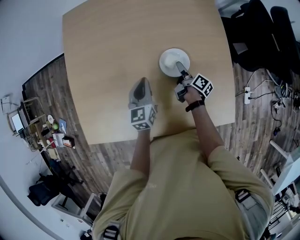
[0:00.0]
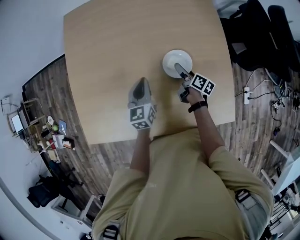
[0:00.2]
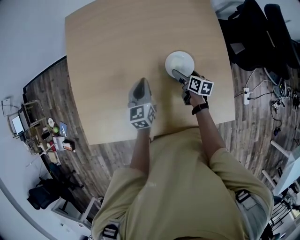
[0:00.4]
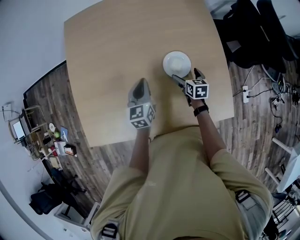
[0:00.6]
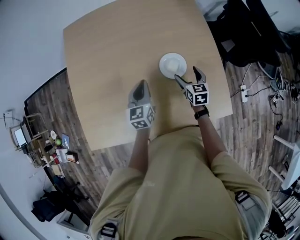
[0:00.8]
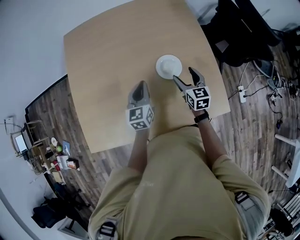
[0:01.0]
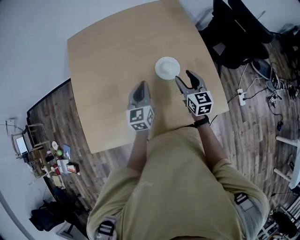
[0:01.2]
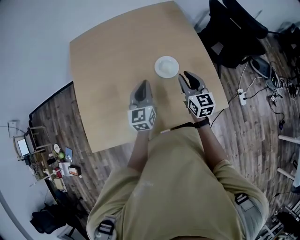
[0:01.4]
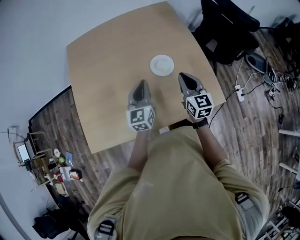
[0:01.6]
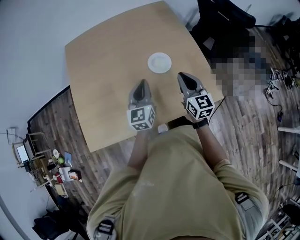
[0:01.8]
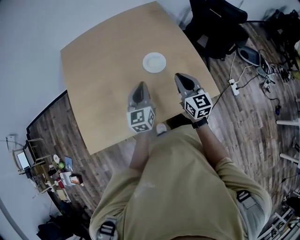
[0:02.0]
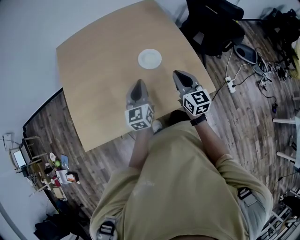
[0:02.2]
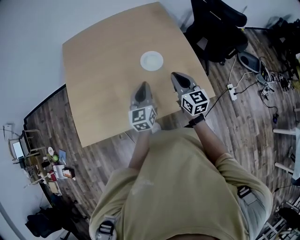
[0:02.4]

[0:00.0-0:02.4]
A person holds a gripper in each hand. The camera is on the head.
0.0 to 1.2 s: The left gripper shifts about 10 cm upward and backward. The right gripper is displaced upward and backward by some 25 cm, twists some 70 degrees counterclockwise, seen from behind, and opens and closes again.
1.2 to 2.4 s: The left gripper is displaced backward and to the right by approximately 15 cm, while the right gripper is displaced backward and upward by some 15 cm, and closes up.

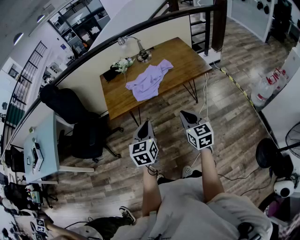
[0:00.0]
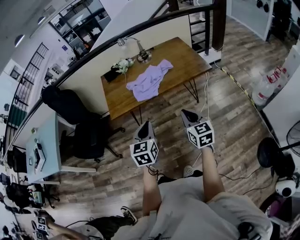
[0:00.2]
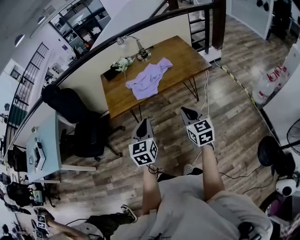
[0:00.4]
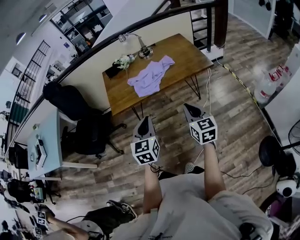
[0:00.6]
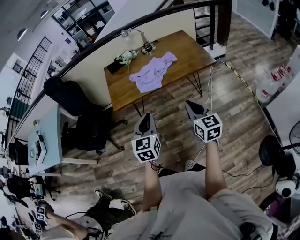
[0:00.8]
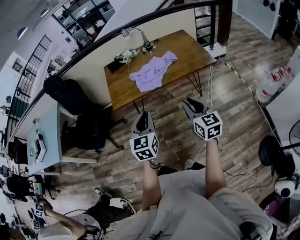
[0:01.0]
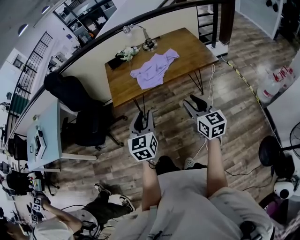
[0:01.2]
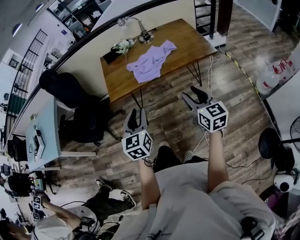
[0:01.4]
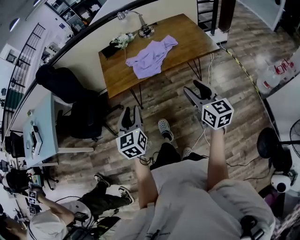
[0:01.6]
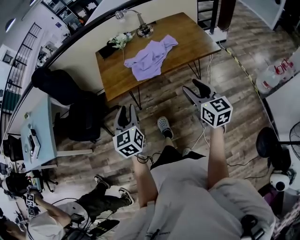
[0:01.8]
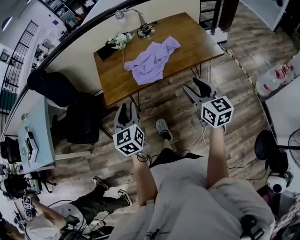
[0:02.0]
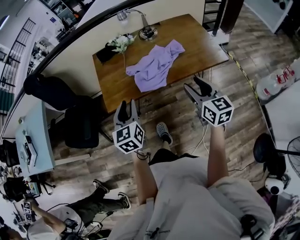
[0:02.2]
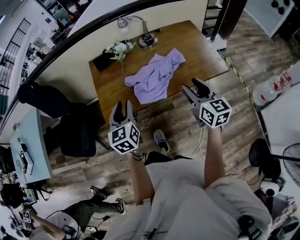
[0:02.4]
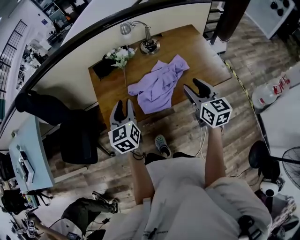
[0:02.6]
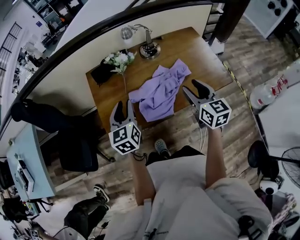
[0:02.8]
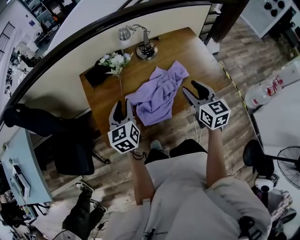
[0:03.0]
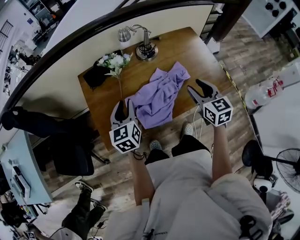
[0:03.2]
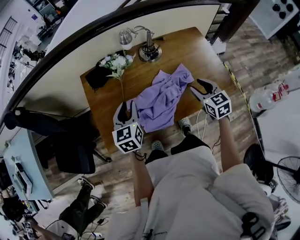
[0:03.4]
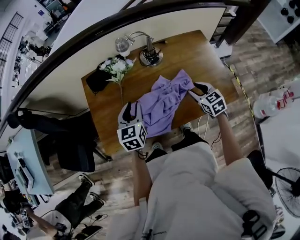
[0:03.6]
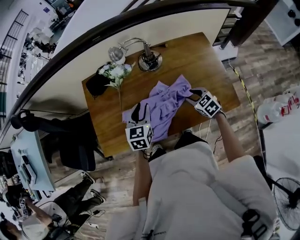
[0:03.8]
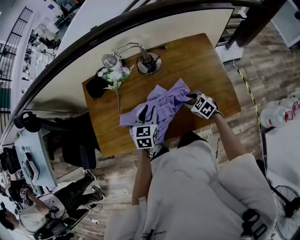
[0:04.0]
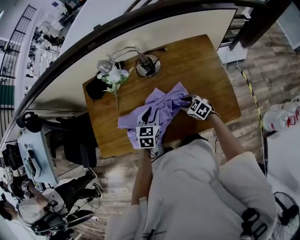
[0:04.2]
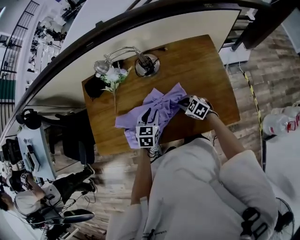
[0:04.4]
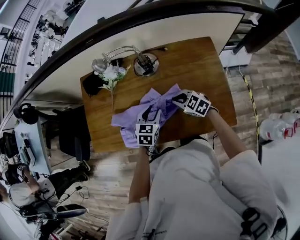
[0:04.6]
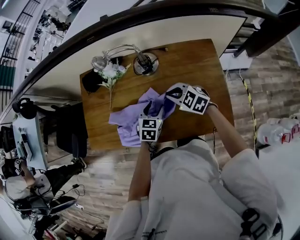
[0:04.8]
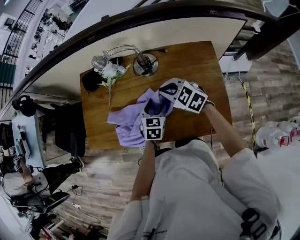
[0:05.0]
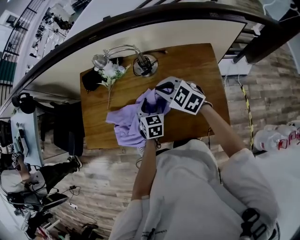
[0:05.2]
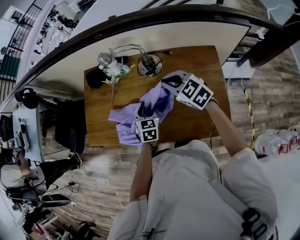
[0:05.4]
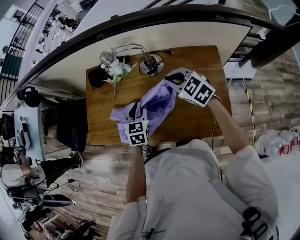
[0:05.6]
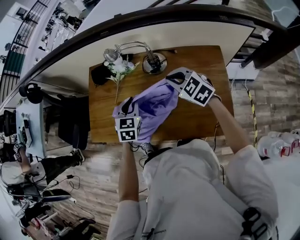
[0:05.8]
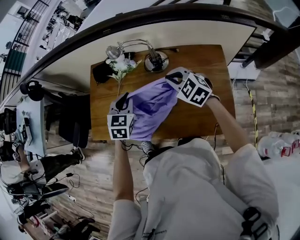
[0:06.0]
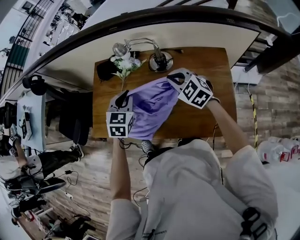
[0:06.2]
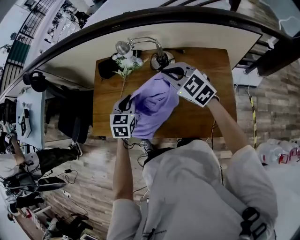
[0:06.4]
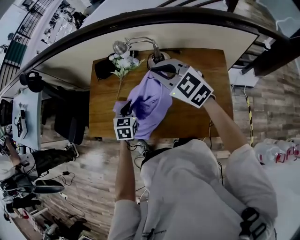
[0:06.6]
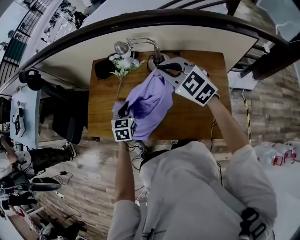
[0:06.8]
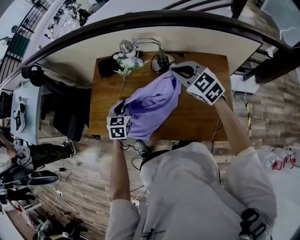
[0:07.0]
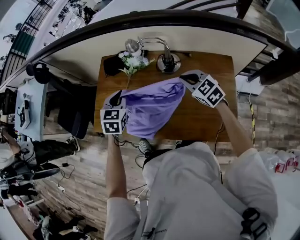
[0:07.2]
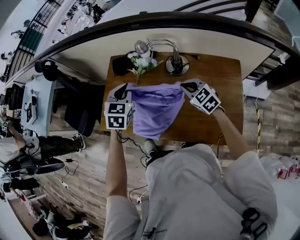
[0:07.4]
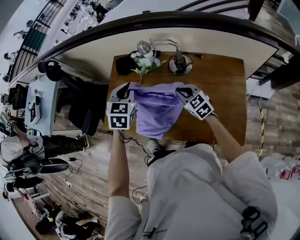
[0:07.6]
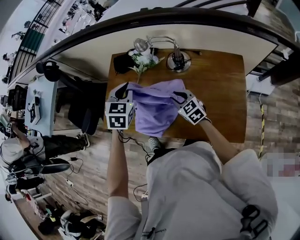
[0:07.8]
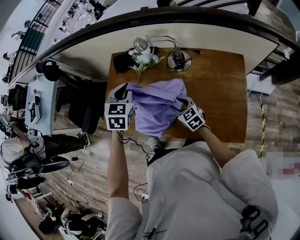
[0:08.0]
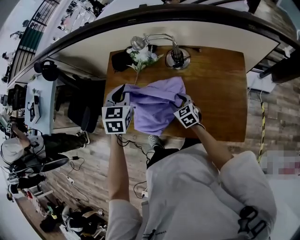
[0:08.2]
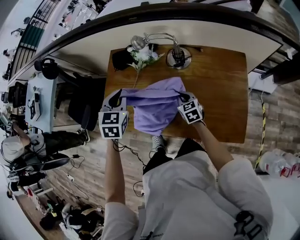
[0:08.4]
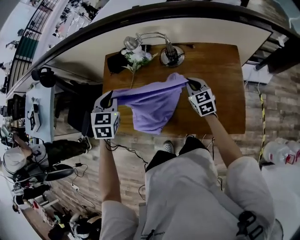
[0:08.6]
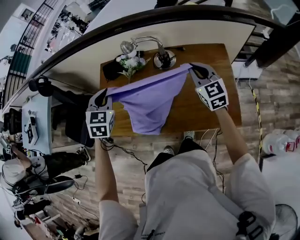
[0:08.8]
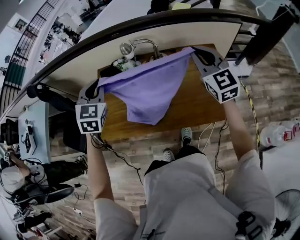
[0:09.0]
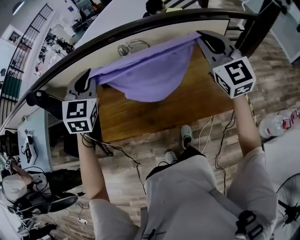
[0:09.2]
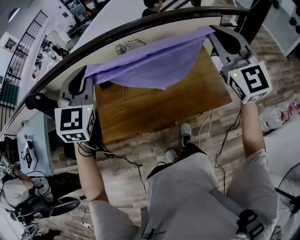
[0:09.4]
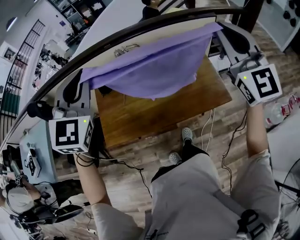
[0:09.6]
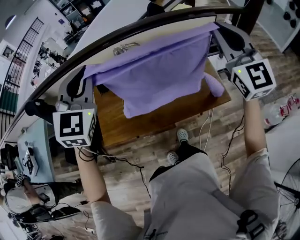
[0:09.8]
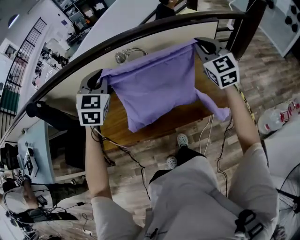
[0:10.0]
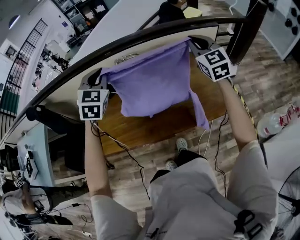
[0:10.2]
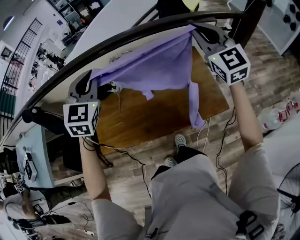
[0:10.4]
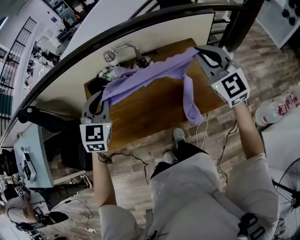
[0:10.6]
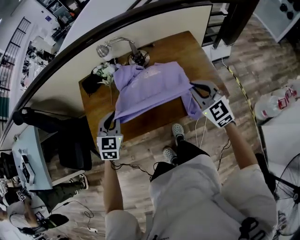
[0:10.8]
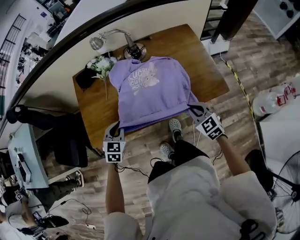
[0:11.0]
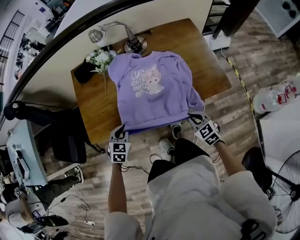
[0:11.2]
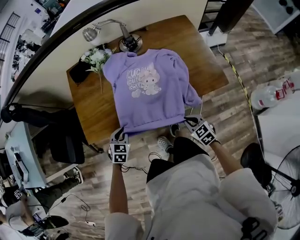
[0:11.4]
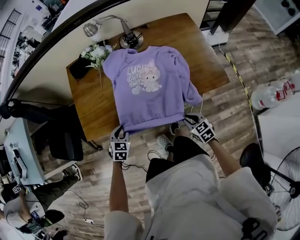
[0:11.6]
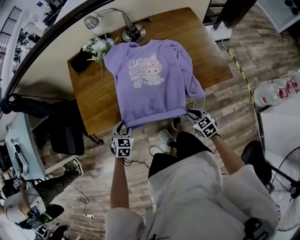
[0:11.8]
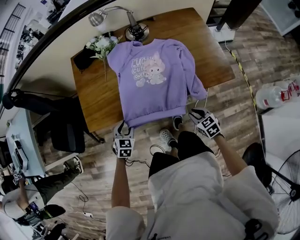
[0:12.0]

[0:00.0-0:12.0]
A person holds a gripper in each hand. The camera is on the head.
0.0 to 1.6 s: The left gripper shifts some 5 cm to the left, and opens up. The right gripper opens.
1.6 to 3.0 s: The pair of grippers is taken forward, approximately 40 cm.
3.0 to 4.4 s: The right gripper goes roughly 30 cm downward, changes its angle by about 60 degrees, and closes up. The left gripper changes place by roughly 30 cm, and swivels some 30 degrees.
4.4 to 6.0 s: The right gripper moves upward and forward, some 25 cm, and swivels about 30 degrees. Meanwhile the left gripper heads upward, to the left and forward, covering approximately 15 cm, and opens and closes again.
6.0 to 7.6 s: The left gripper is displaced upward and to the left by roughly 10 cm. The right gripper heads to the left and downward, covering approximately 10 cm.
7.6 to 9.0 s: The right gripper shifts approximately 30 cm upward, turns by some 40 degrees, and opens, then closes again. The left gripper travels upward by some 10 cm.
9.0 to 10.4 s: The left gripper moves up and down over about 20 cm, changing direction 2 times. Meanwhile the right gripper moves up and down over about 20 cm, changing direction 2 times.
10.4 to 12.0 s: The two grippers go some 60 cm downward and backward. The left gripper tips its fingers downward by approximately 40 degrees, and opens. Meanwhile the right gripper tips its fingers downward by about 50 degrees.

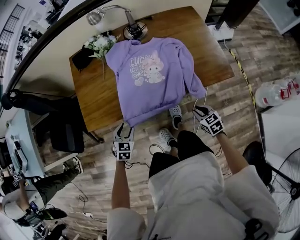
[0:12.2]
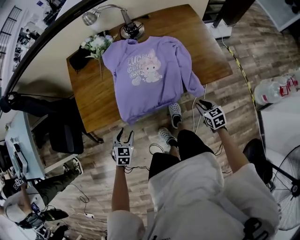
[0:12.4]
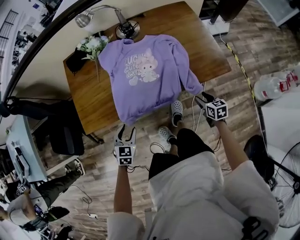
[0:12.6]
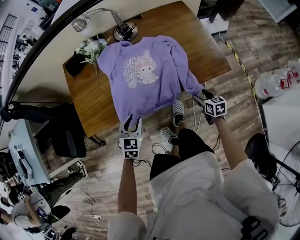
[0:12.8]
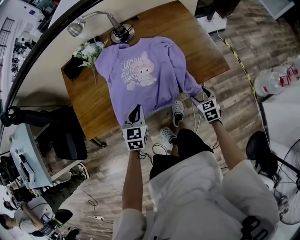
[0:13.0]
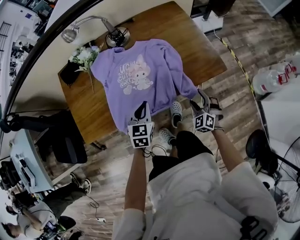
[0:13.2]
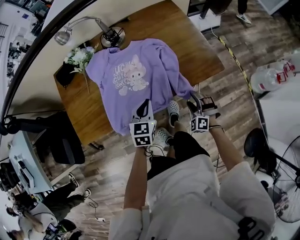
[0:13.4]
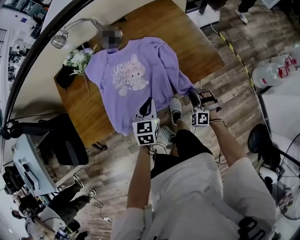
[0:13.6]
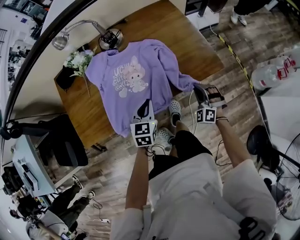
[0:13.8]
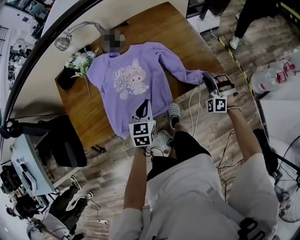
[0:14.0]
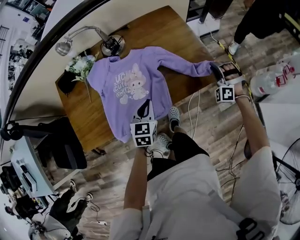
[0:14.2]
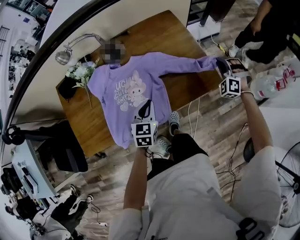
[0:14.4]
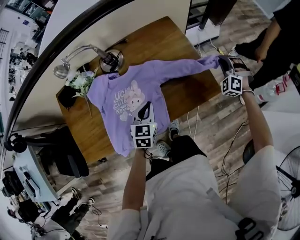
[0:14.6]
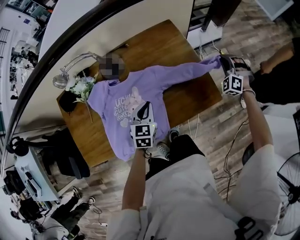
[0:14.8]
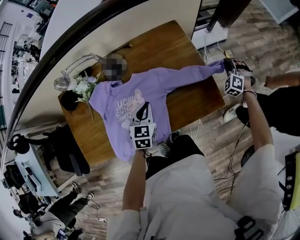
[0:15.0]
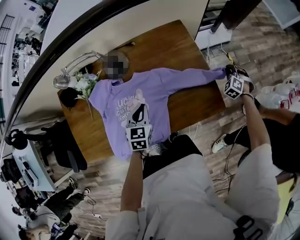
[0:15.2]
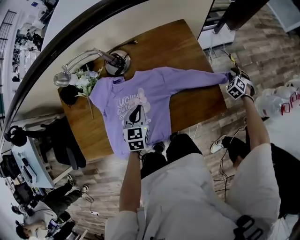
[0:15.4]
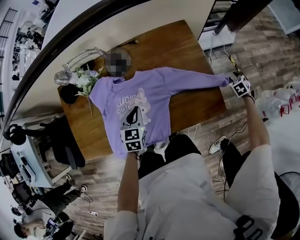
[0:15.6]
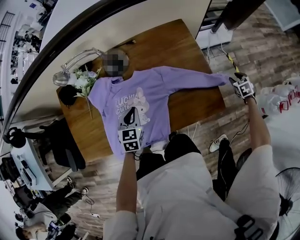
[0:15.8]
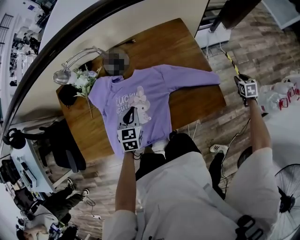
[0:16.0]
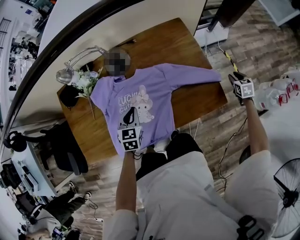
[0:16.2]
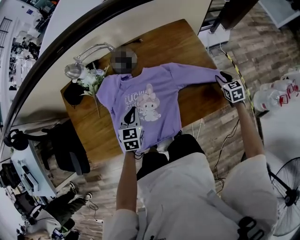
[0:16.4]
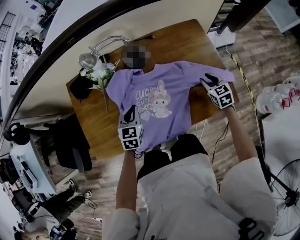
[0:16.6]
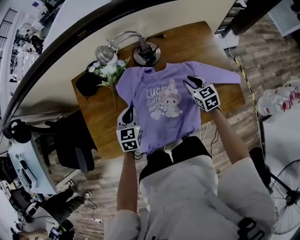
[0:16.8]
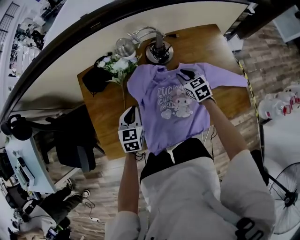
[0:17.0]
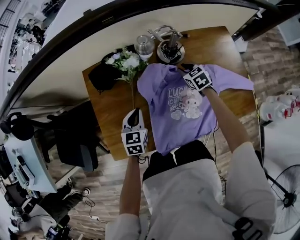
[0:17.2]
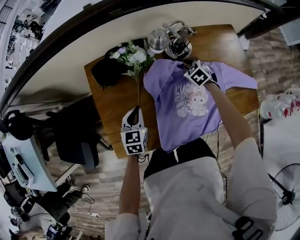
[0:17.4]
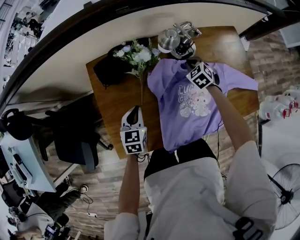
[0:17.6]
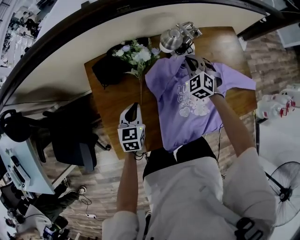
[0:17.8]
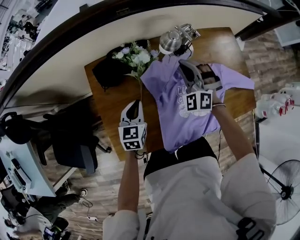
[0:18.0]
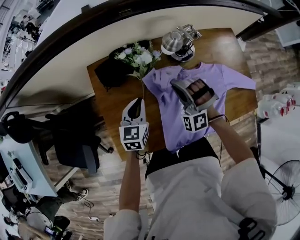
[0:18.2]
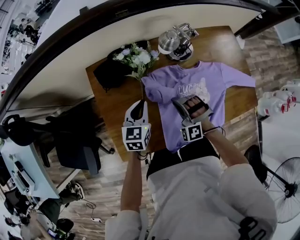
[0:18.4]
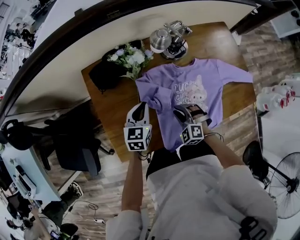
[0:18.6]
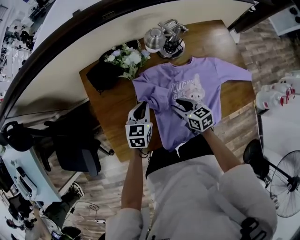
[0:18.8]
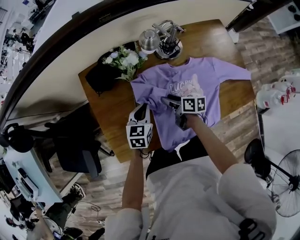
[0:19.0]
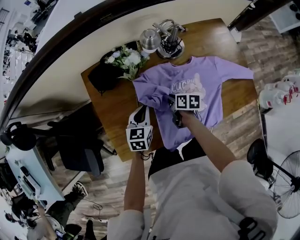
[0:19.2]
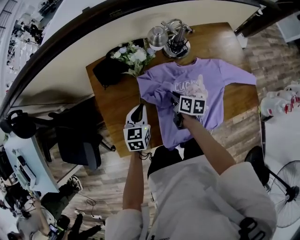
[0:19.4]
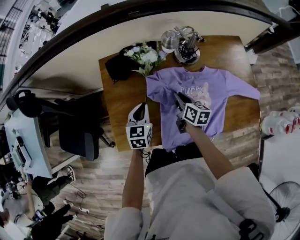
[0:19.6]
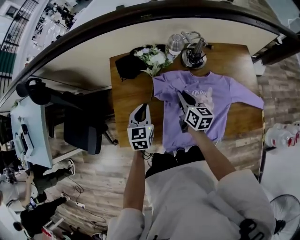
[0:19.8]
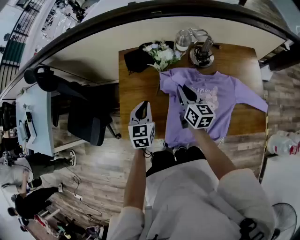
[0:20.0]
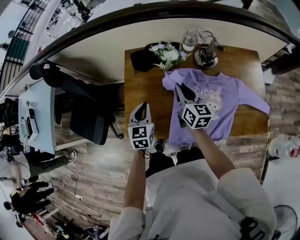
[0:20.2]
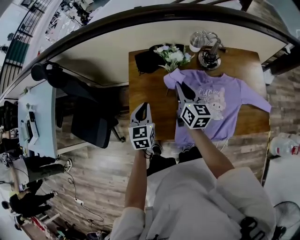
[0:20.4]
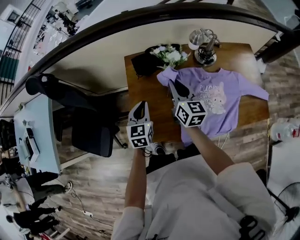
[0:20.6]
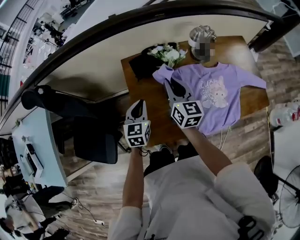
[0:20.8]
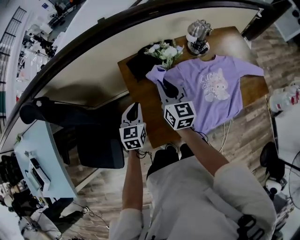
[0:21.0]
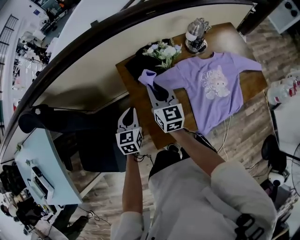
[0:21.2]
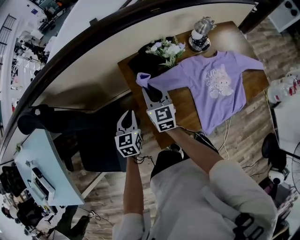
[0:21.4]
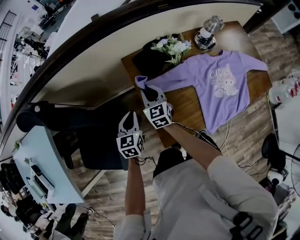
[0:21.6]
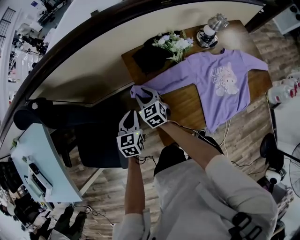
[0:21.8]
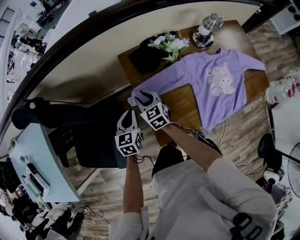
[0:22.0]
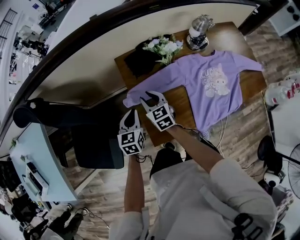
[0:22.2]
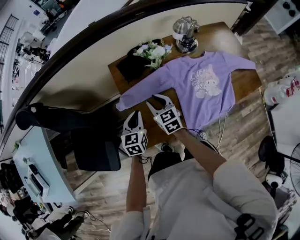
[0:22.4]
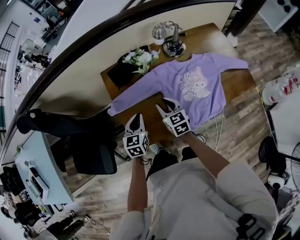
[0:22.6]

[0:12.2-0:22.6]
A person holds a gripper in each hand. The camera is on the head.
12.2 to 13.6 s: The left gripper moves about 30 cm, changes its angle by about 20 degrees, and closes up. The right gripper shifts by roughly 10 cm, rotates around the line of its fingers by about 60 degrees, counterclockwise from behind, and opens, then closes again.
13.6 to 15.2 s: The right gripper shifts approximately 40 cm forward and to the right, and turns by some 20 degrees; the left gripper shifts approximately 15 cm forward.
15.2 to 16.6 s: The right gripper moves to the left, roughly 25 cm, rolls clockwise, seen from behind, by approximately 50 degrees, and opens up. Meanwhile the left gripper goes approximately 15 cm to the left.
16.6 to 18.2 s: The left gripper goes roughly 20 cm to the left; the right gripper moves to the left, roughly 40 cm, rotates around the line of its fingers by some 80 degrees, counterclockwise from behind, and closes up.
18.2 to 19.6 s: The left gripper is displaced backward by roughly 5 cm; the right gripper heads downward, covering roughly 10 cm, rolls clockwise, seen from behind, by approximately 120 degrees, and opens, then closes once more.
19.6 to 21.2 s: The right gripper heads to the left and upward, covering roughly 30 cm, and swivels about 40 degrees. The left gripper moves to the left, some 25 cm.
21.2 to 22.6 s: The right gripper moves to the right, backward and downward, approximately 20 cm, and changes its angle by approximately 20 degrees. The left gripper shifts approximately 15 cm to the right and backward.
